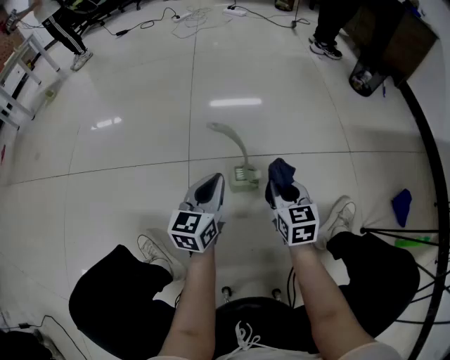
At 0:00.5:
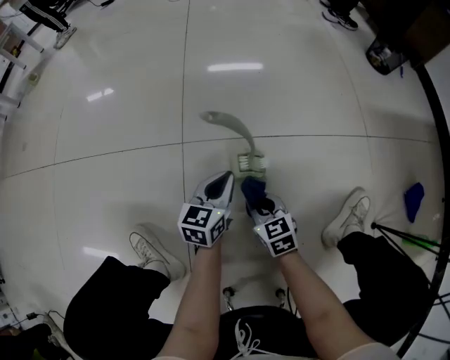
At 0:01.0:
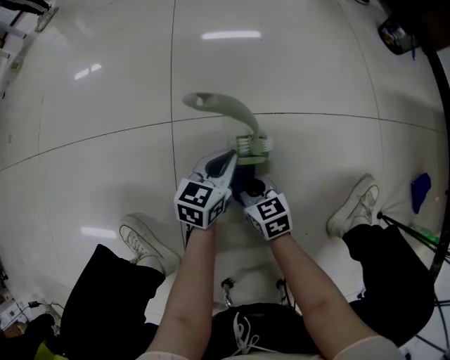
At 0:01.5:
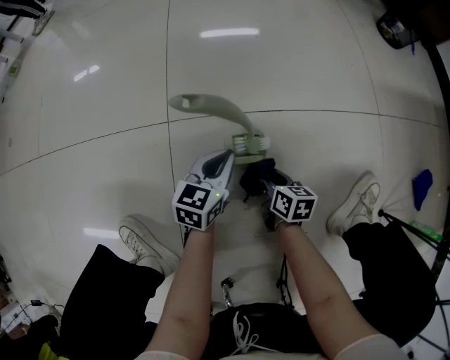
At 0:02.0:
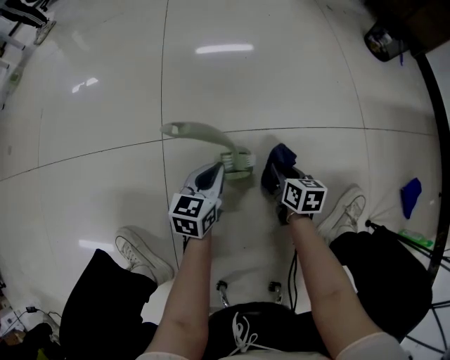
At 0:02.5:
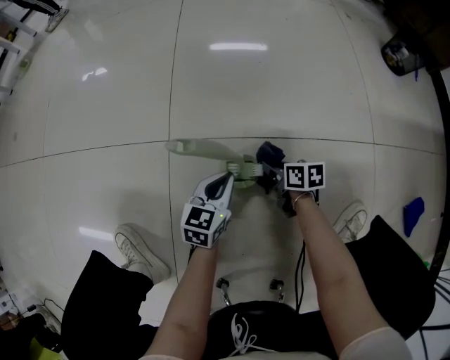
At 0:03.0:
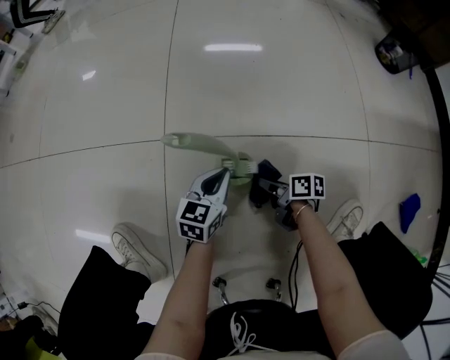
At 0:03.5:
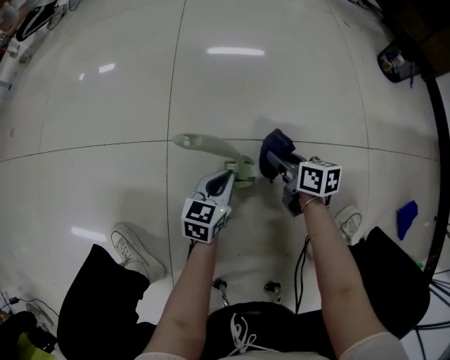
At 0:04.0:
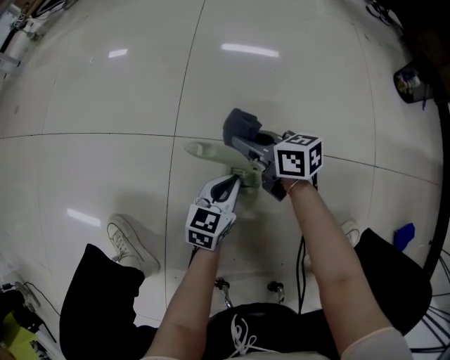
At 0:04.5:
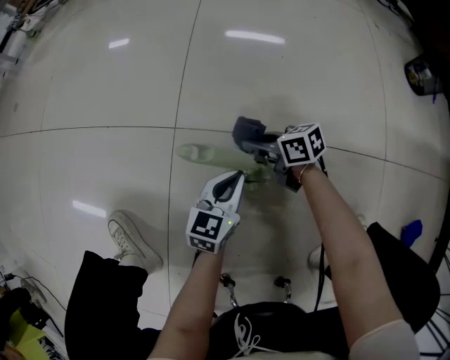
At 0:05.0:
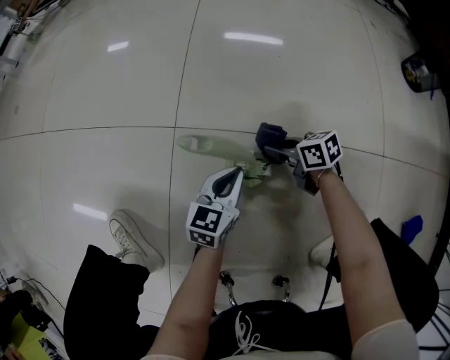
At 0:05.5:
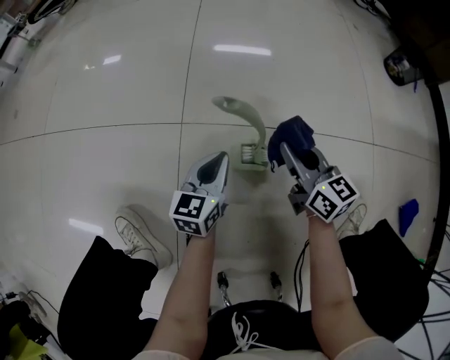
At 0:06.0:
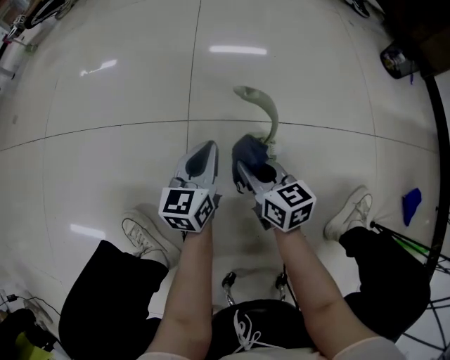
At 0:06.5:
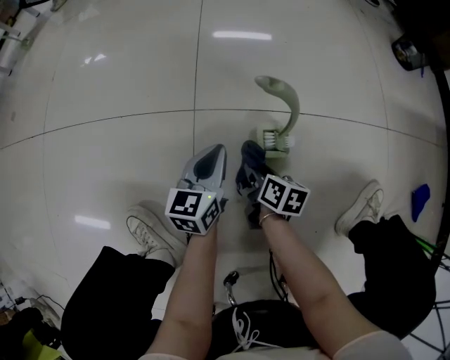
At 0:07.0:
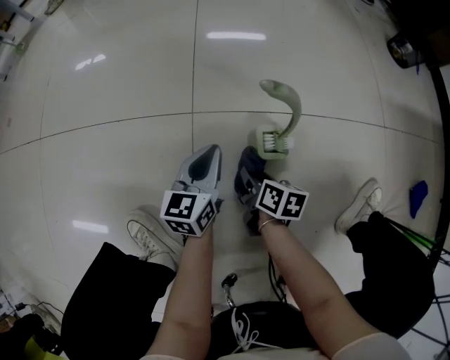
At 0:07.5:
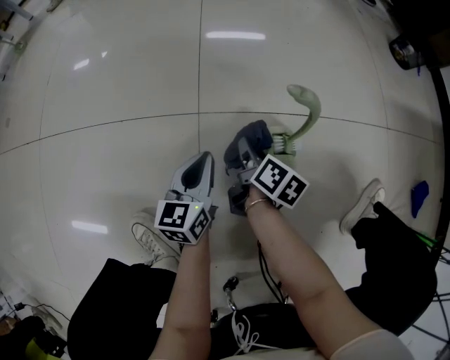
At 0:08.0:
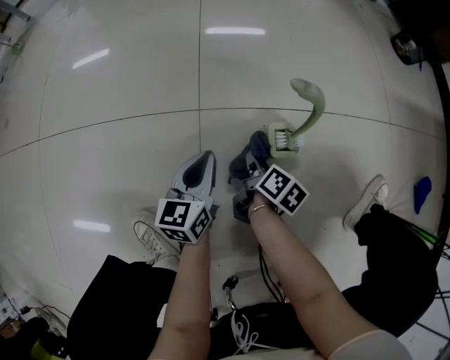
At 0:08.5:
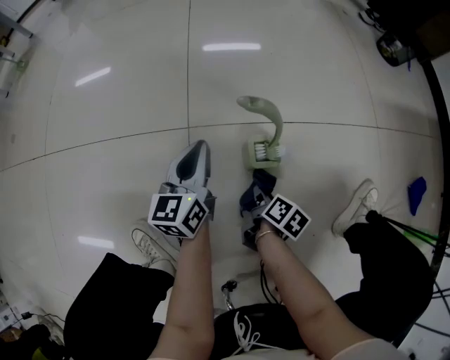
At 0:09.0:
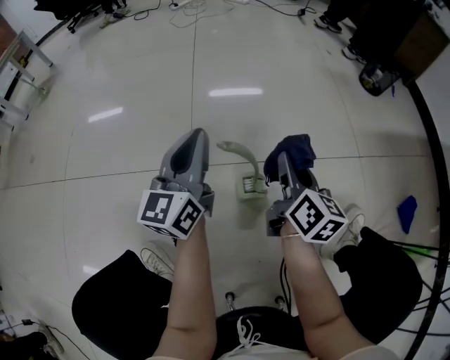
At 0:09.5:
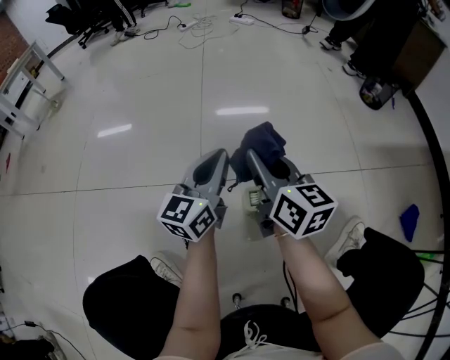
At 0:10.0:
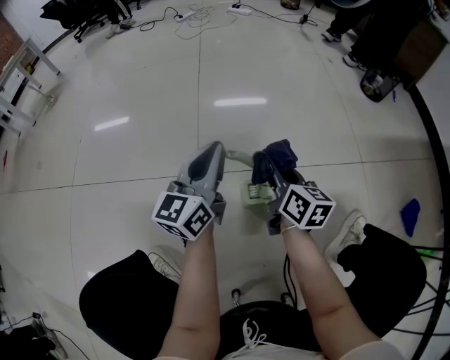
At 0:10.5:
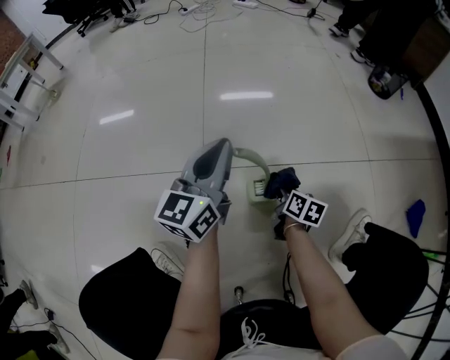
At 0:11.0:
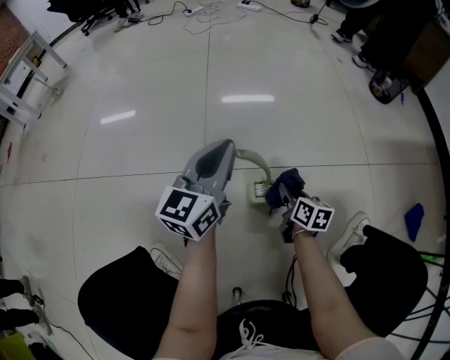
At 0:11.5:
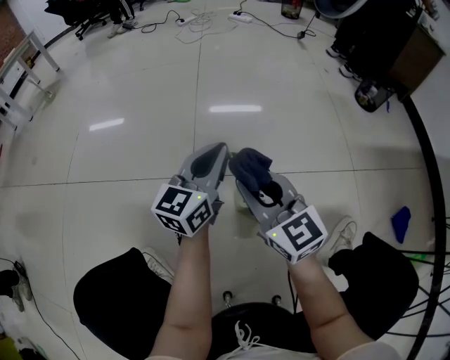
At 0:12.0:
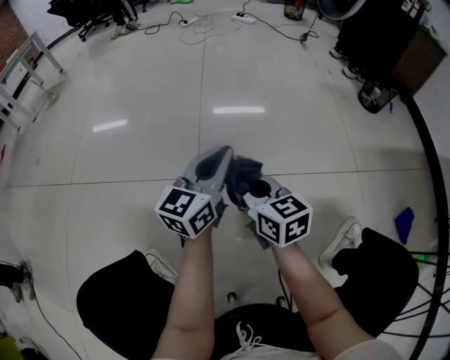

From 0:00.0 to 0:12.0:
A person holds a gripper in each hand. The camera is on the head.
From 0:00.0 to 0:02.0: The right gripper moves downward, approximately 20 cm, and turns by about 30 degrees. The left gripper heads downward and forward, covering approximately 20 cm.
From 0:02.0 to 0:04.0: The right gripper travels to the left, forward and upward by about 25 cm, and changes its angle by about 50 degrees.
From 0:04.0 to 0:06.0: The right gripper goes up and down, approximately 15 cm each way, reversing 2 times, and turns by approximately 30 degrees; the left gripper heads to the left and upward, covering roughly 15 cm.
From 0:06.0 to 0:08.0: The left gripper goes about 10 cm to the left and downward. The right gripper swings up and down, approximately 15 cm each way, with 2 reversals, and rolls clockwise, seen from behind, by about 50 degrees.
From 0:08.0 to 0:10.0: Both grippers move upward, roughly 25 cm. The left gripper changes its angle by some 30 degrees. Meanwhile the right gripper turns by roughly 40 degrees.
From 0:10.0 to 0:12.0: The right gripper swings up and down, about 25 cm each way, with 2 reversals, and turns by some 30 degrees.

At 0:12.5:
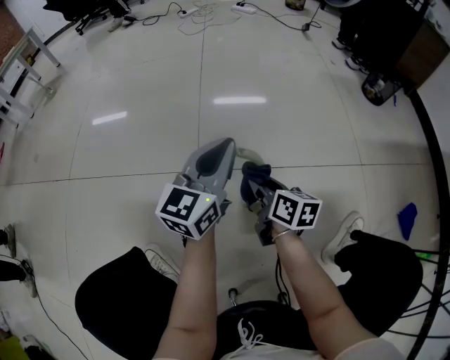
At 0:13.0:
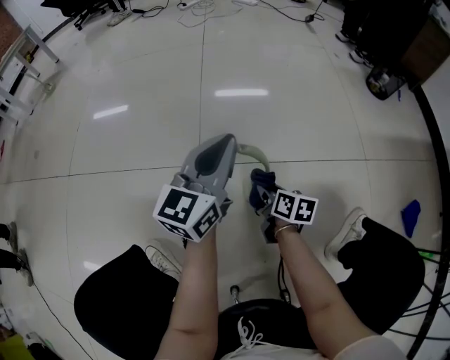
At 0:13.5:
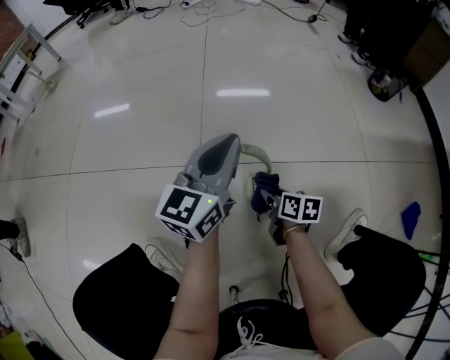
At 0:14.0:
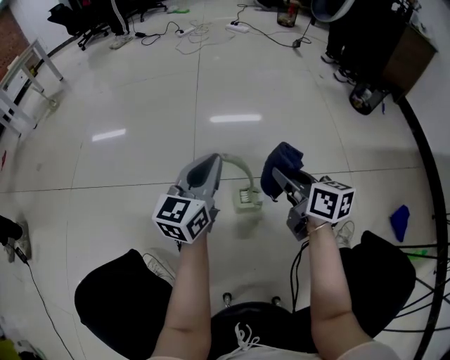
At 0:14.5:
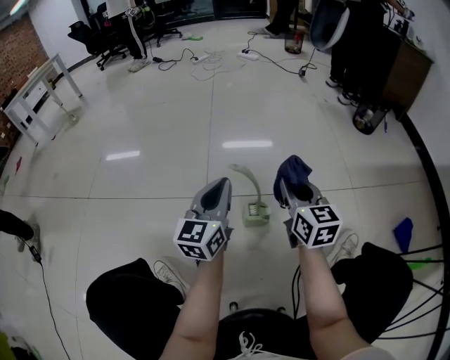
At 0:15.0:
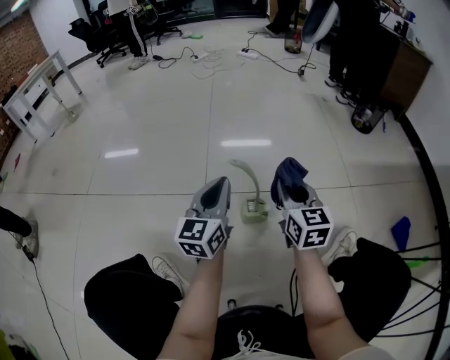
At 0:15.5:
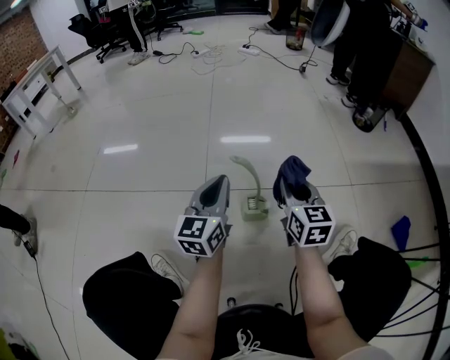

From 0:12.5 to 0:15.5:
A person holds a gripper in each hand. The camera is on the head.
From 0:12.5 to 0:14.0: The right gripper shifts approximately 15 cm upward and to the right.
From 0:14.0 to 0:15.5: The left gripper is displaced backward by approximately 5 cm, while the right gripper rotates about 30 degrees.

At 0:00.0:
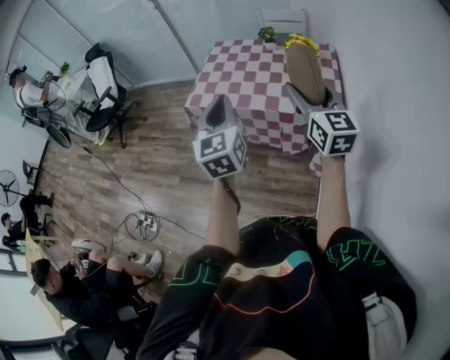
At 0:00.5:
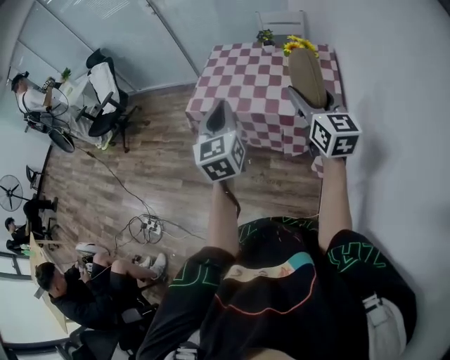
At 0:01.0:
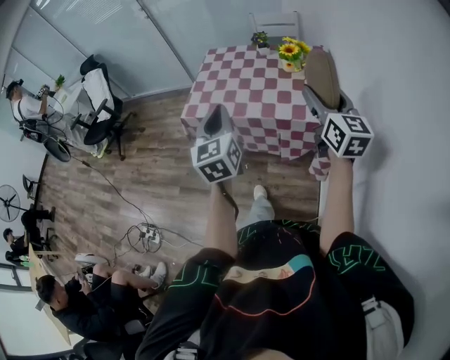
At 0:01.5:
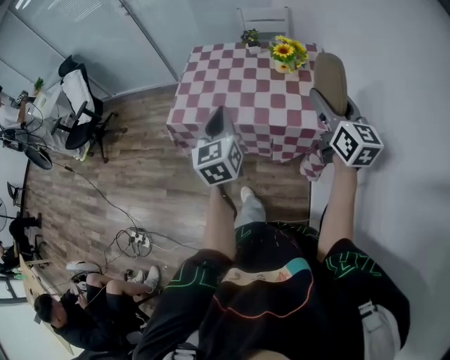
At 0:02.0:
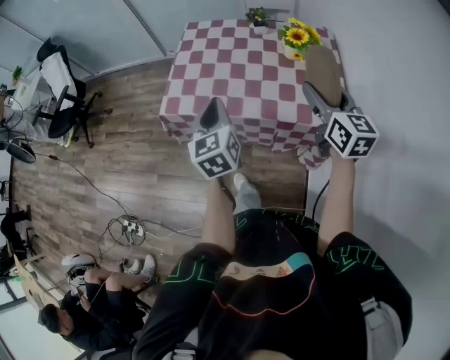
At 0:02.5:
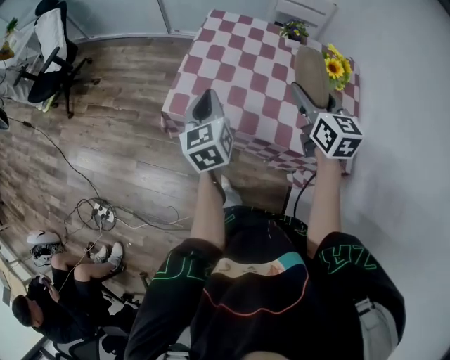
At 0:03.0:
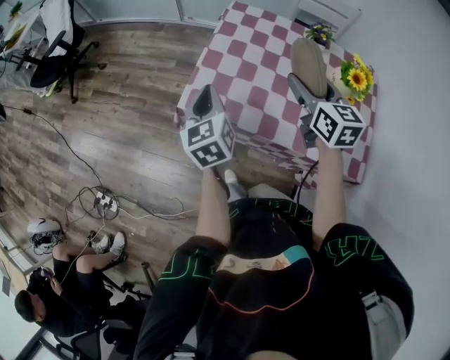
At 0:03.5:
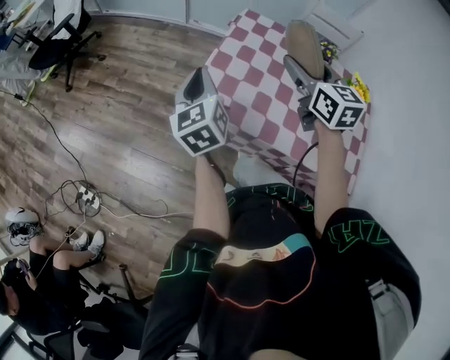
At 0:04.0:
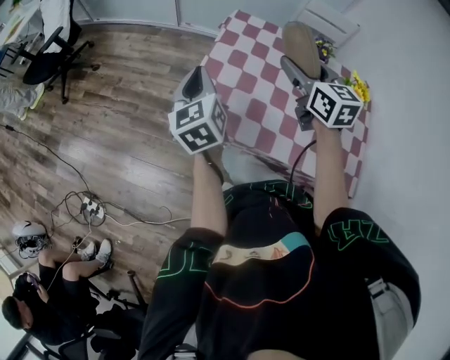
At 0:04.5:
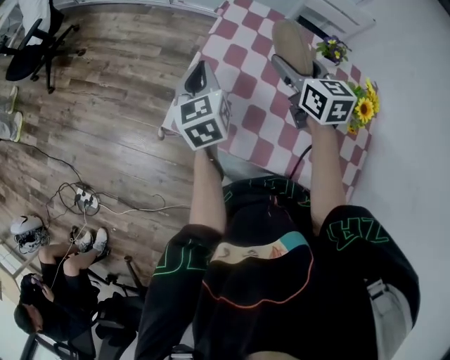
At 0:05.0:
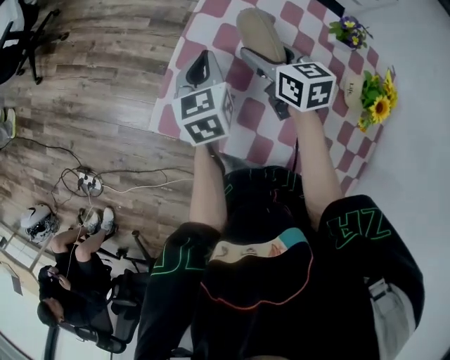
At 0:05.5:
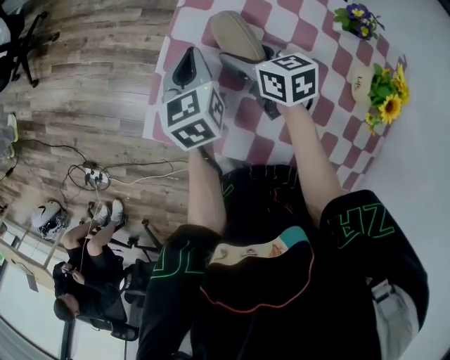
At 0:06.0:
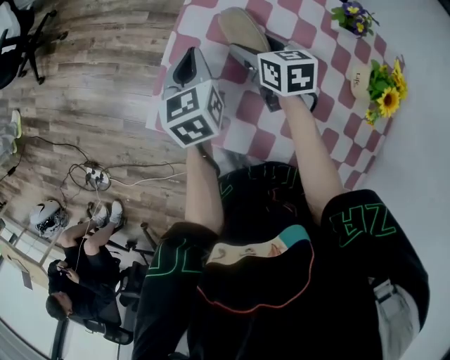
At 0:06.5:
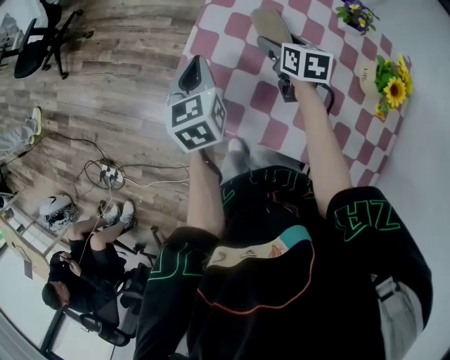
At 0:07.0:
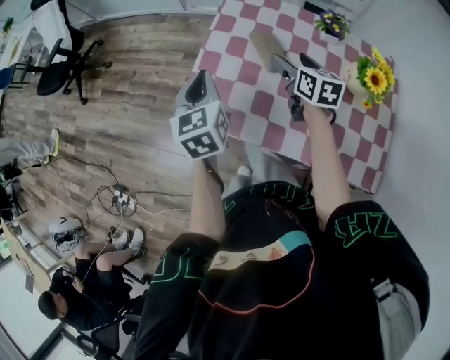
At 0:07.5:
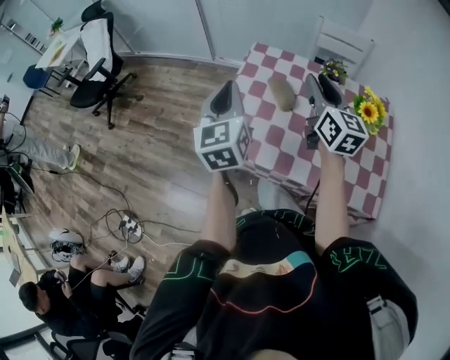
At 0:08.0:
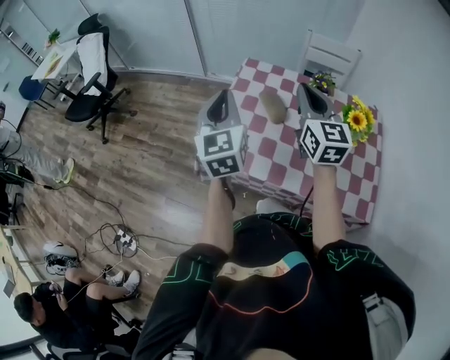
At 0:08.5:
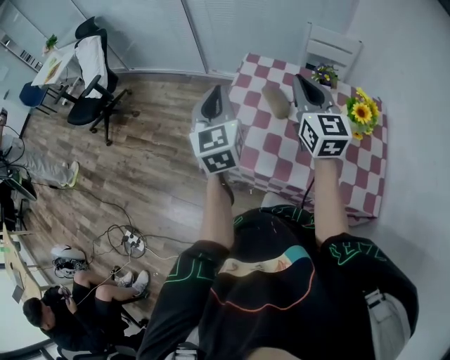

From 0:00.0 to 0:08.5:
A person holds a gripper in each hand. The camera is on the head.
From 0:00.0 to 0:02.0: Both grippers move forward and downward, approximately 20 cm.
From 0:02.0 to 0:04.0: Both grippers travel together forward and to the left, roughly 30 cm. The right gripper turns by approximately 20 degrees.
From 0:04.0 to 0:06.5: The right gripper is displaced downward and forward by roughly 25 cm, and swivels about 30 degrees. The left gripper goes approximately 15 cm downward, forward and to the right, and swivels about 20 degrees.
From 0:06.5 to 0:08.5: Both grippers move upward, approximately 25 cm. The left gripper changes its angle by some 30 degrees; the right gripper angles its fingers upward, by approximately 40 degrees, and closes.

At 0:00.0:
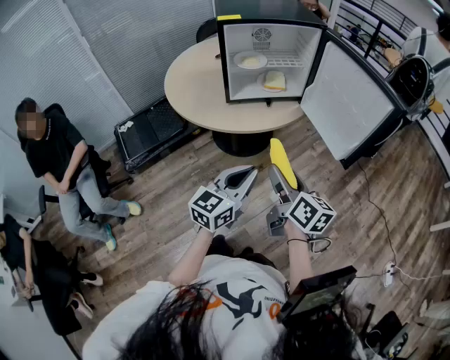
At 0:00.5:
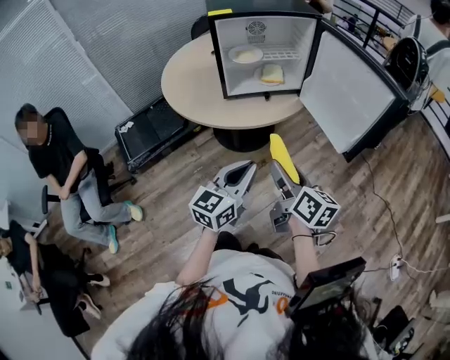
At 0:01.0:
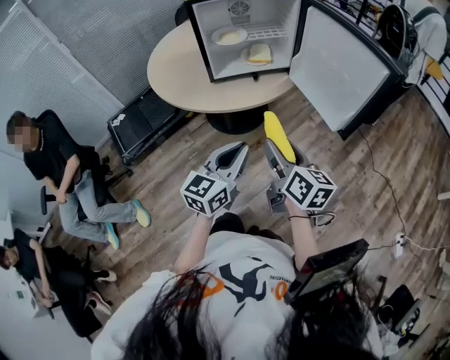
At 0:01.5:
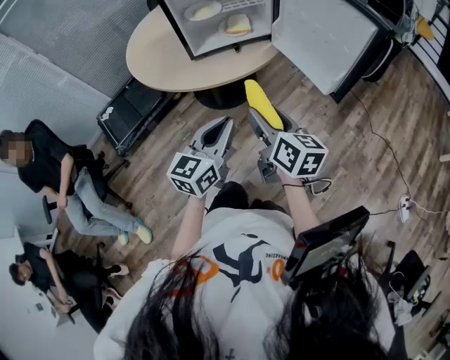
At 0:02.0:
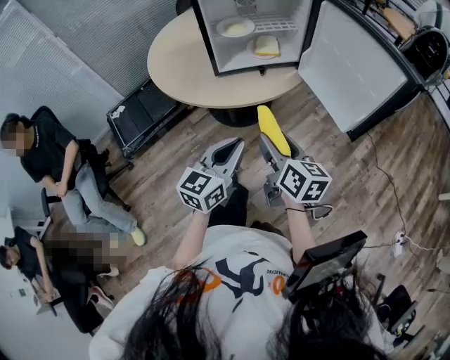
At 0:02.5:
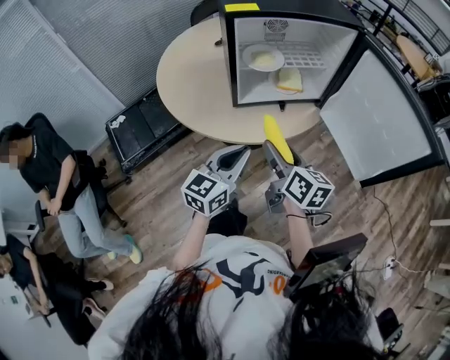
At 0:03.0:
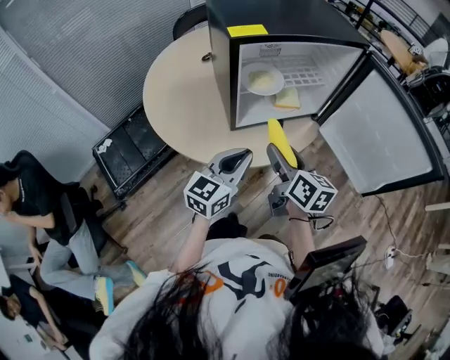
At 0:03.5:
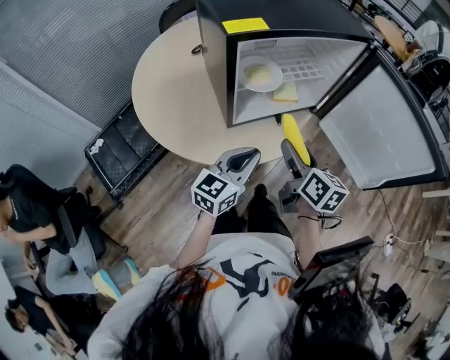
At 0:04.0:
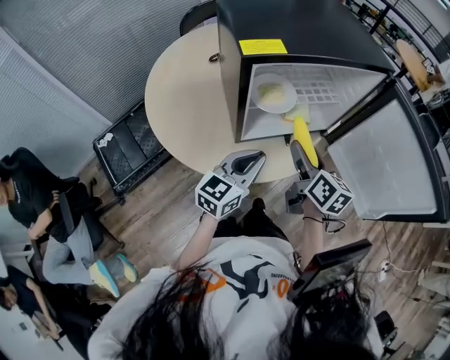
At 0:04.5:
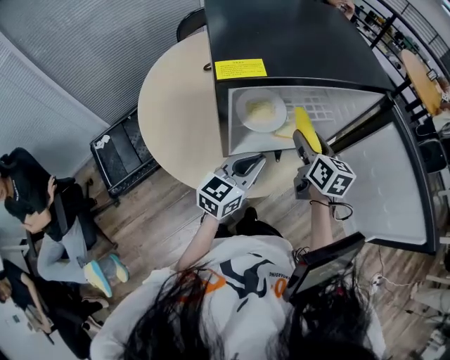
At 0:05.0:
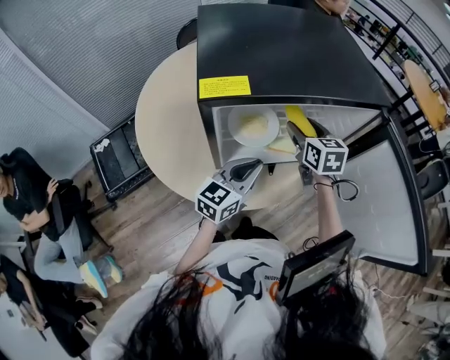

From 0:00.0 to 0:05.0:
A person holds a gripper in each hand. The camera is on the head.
From 0:00.0 to 0:02.5: The grippers both shift forward and to the left by about 20 cm.
From 0:02.5 to 0:05.0: Both grippers travel together forward, roughly 30 cm. The right gripper rotates about 30 degrees.
